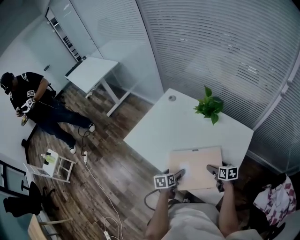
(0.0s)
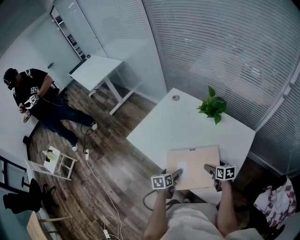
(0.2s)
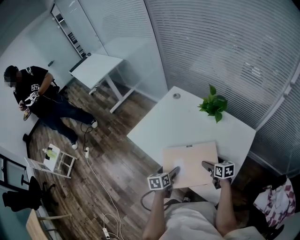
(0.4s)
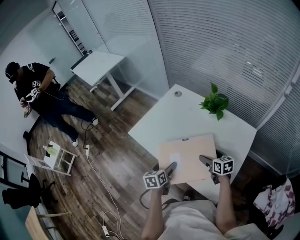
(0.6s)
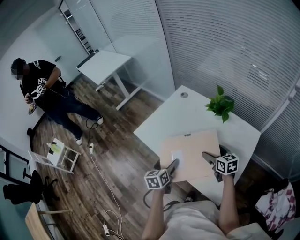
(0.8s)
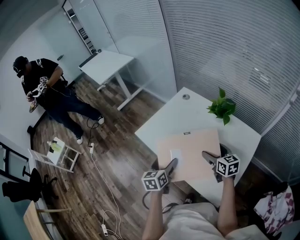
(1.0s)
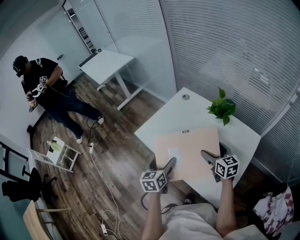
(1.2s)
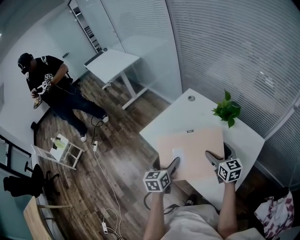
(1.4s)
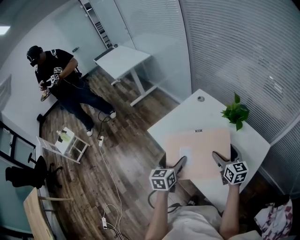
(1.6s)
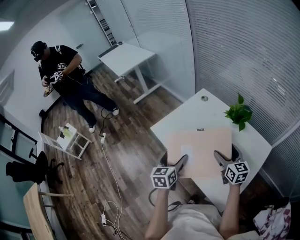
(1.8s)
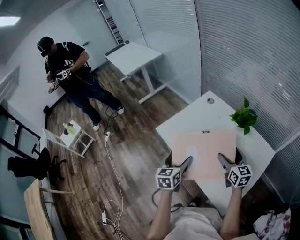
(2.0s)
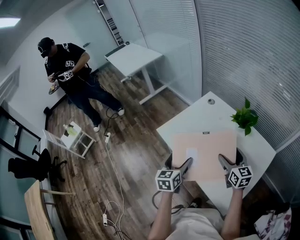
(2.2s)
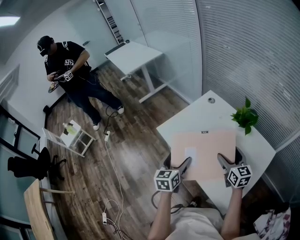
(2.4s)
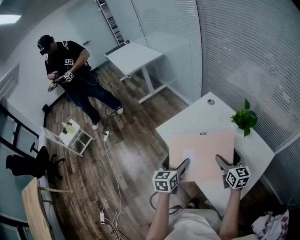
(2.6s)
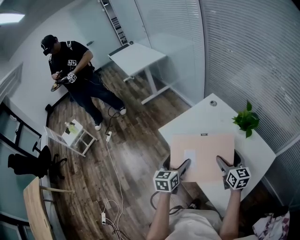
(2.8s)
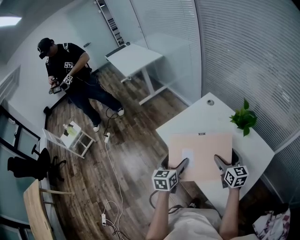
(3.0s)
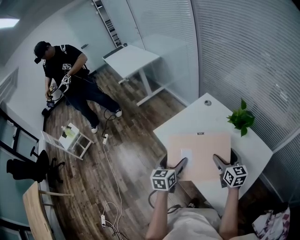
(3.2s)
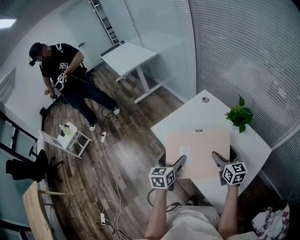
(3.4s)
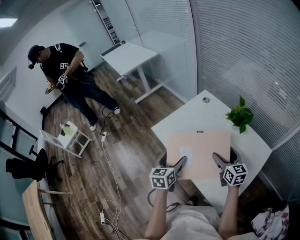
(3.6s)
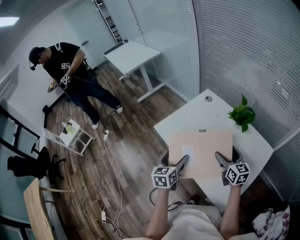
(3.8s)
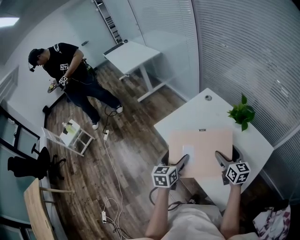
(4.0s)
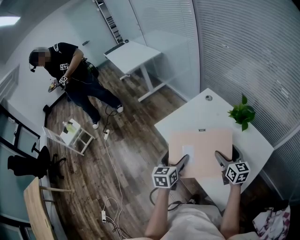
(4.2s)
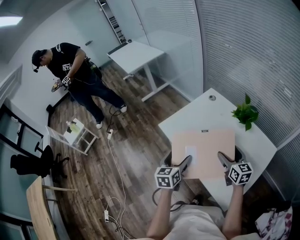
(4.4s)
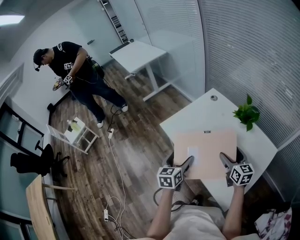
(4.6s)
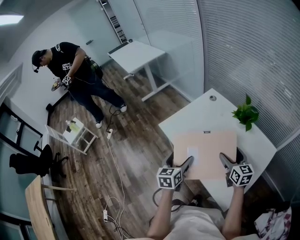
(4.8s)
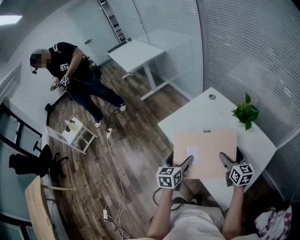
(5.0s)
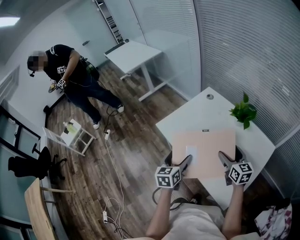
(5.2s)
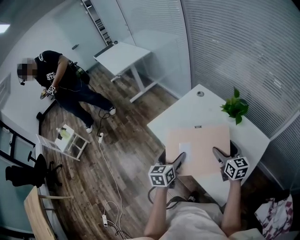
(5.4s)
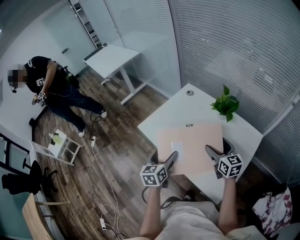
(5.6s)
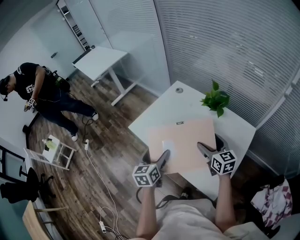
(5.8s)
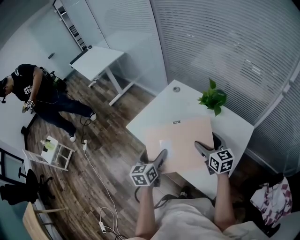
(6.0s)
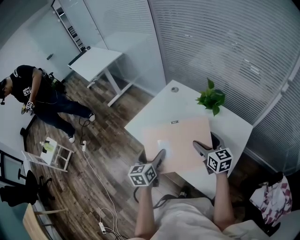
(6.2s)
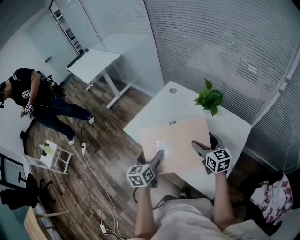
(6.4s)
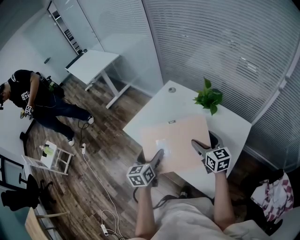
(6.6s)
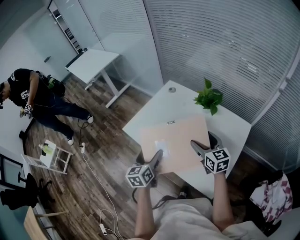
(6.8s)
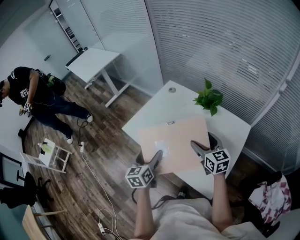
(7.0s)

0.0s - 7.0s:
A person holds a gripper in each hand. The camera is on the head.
0.0s - 1.4s: Both grippers travel together upward and to the left, about 20 cm. The left gripper changes its angle by approximately 30 degrees; the right gripper rotates approximately 40 degrees.
1.4s - 5.6s: There are only small adjustments of the grippers.
5.6s - 7.0s: The two grippers keep their place.

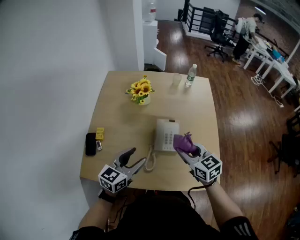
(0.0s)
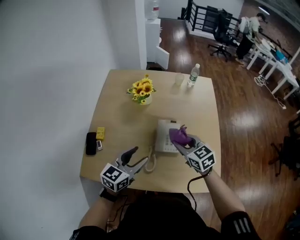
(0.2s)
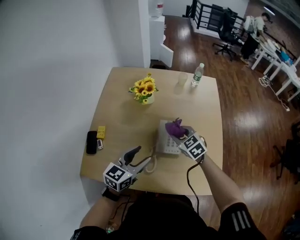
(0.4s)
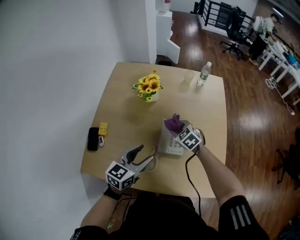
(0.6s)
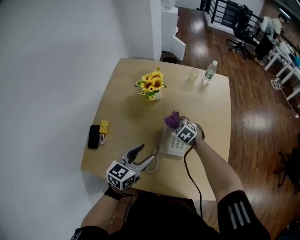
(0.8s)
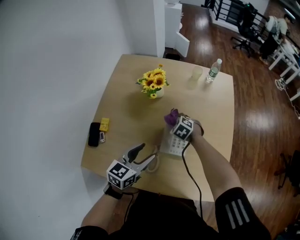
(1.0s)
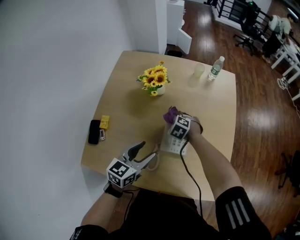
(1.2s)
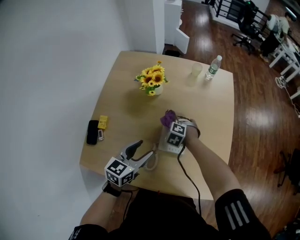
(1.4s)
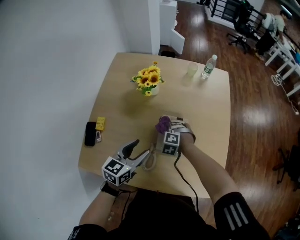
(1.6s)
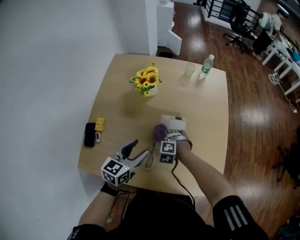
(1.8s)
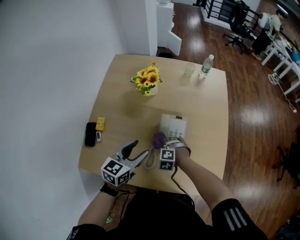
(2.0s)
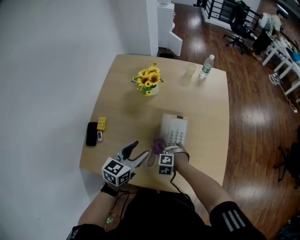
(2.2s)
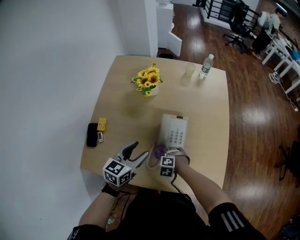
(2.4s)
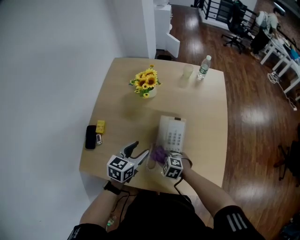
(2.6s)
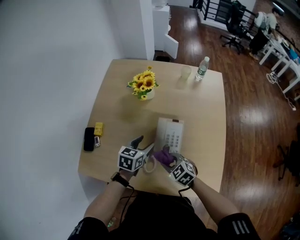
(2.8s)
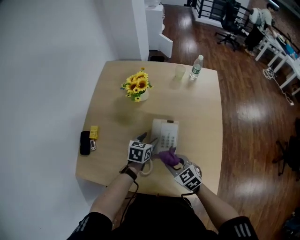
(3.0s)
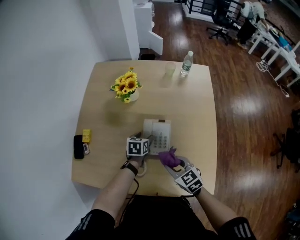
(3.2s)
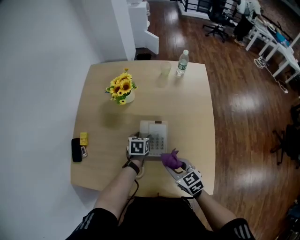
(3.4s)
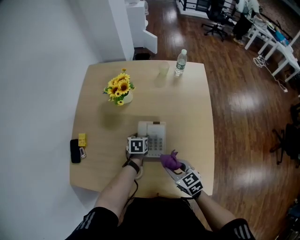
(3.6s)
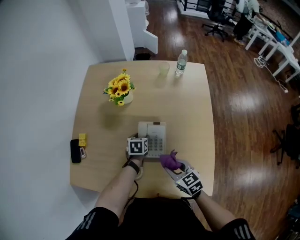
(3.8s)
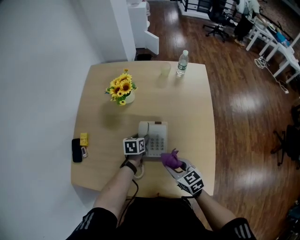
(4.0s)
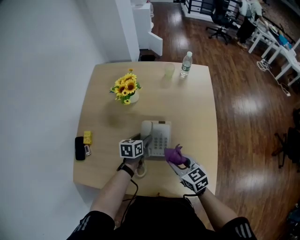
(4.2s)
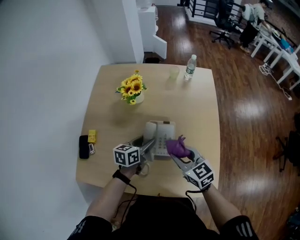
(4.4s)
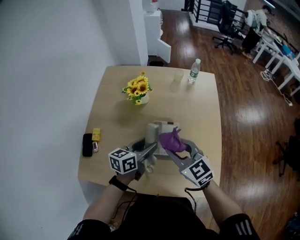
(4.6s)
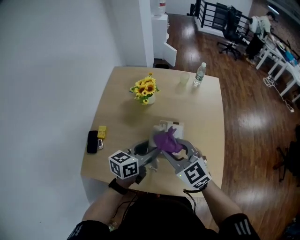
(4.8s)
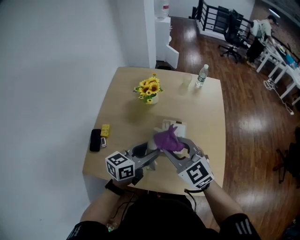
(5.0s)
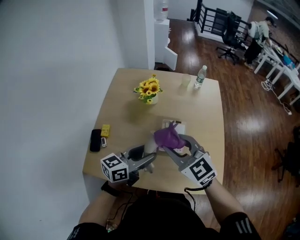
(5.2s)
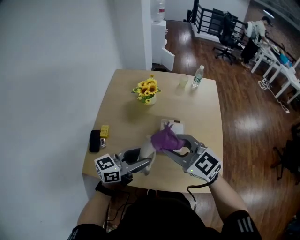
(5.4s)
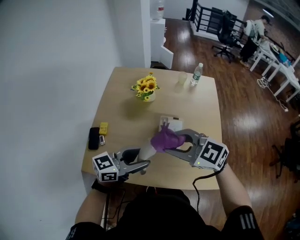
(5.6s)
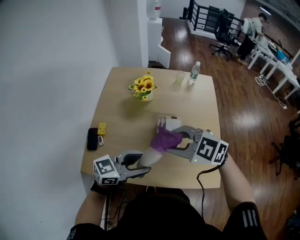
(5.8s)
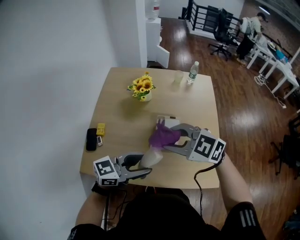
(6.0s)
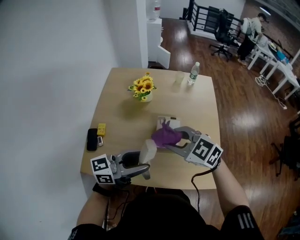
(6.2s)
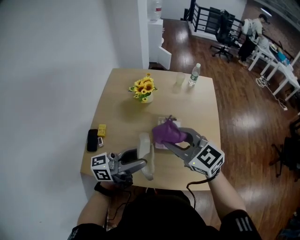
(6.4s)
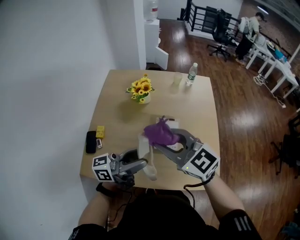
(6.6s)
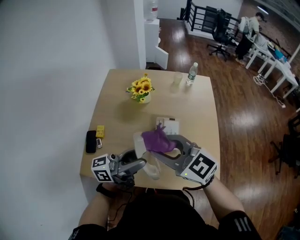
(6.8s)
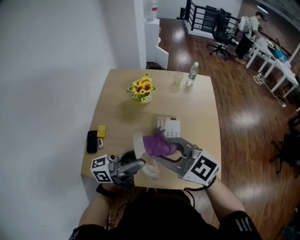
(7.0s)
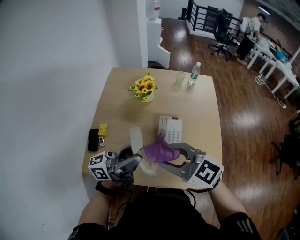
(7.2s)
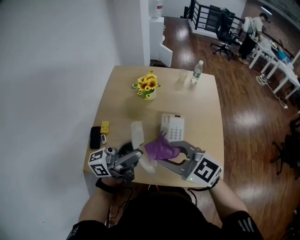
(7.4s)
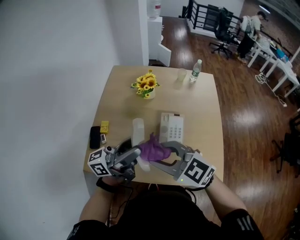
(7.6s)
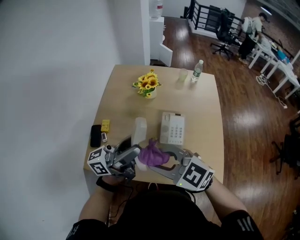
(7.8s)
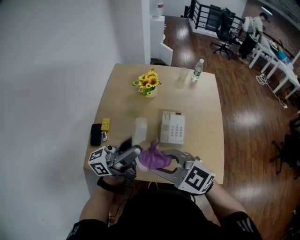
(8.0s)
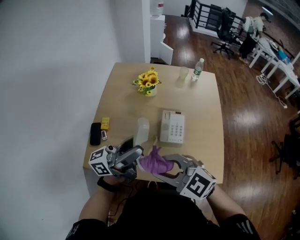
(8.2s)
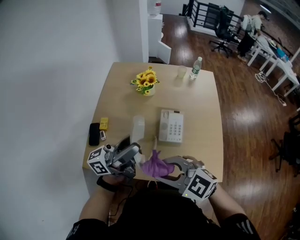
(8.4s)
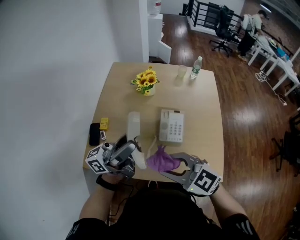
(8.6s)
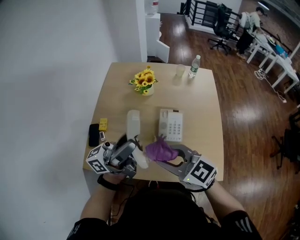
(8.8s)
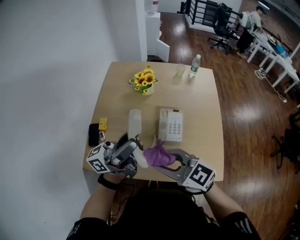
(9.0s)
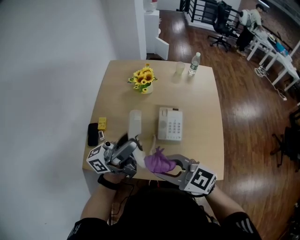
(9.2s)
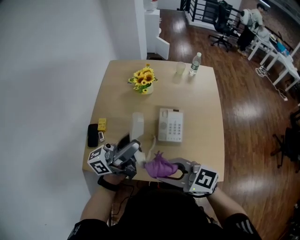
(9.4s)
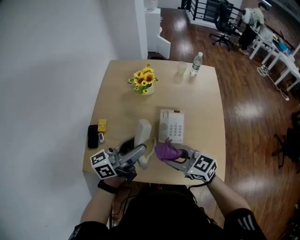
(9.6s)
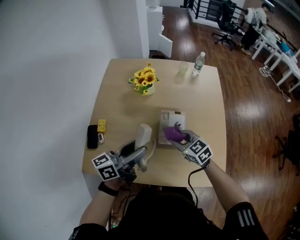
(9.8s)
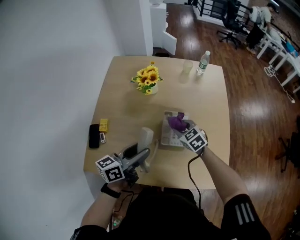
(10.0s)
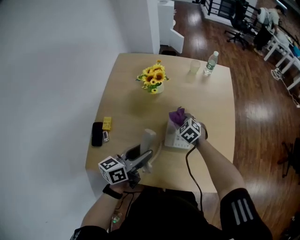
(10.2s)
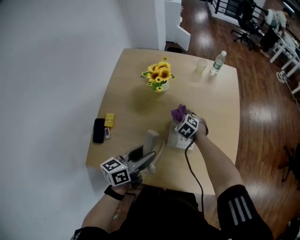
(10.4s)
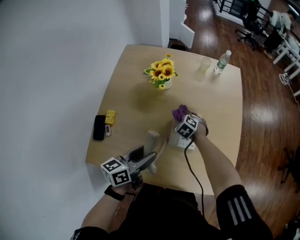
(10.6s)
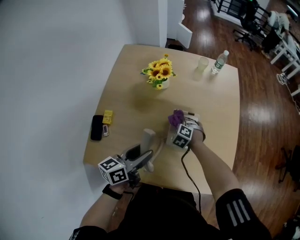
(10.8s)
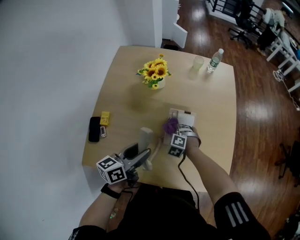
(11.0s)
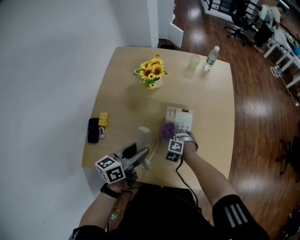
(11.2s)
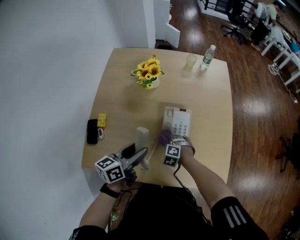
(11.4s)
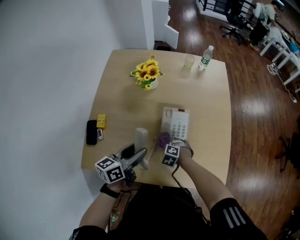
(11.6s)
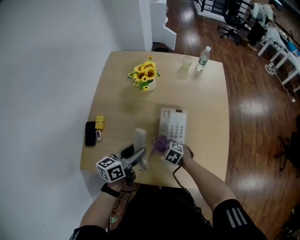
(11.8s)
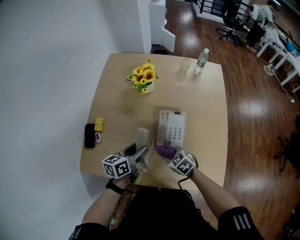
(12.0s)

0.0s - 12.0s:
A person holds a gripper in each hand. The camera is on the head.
0.0s - 1.6s: The right gripper goes some 25 cm downward and forward, and twists some 60 degrees counterclockwise, seen from behind. Meanwhile the left gripper moves forward, approximately 10 cm.
1.6s - 3.0s: The right gripper heads backward and upward, covering about 15 cm, and rotates around the line of its fingers by roughly 40 degrees, clockwise from behind. Meanwhile the left gripper moves downward, forward and to the right, approximately 15 cm, and changes its angle by roughly 20 degrees.
3.0s - 4.4s: The left gripper goes downward and returns, approximately 10 cm each way, and changes its angle by roughly 20 degrees. The right gripper shifts roughly 10 cm upward.
4.4s - 6.0s: The left gripper shifts by about 30 cm, and rotates roughly 40 degrees. The right gripper moves upward, approximately 15 cm, and changes its angle by some 40 degrees.
6.0s - 7.6s: The left gripper is displaced upward by about 10 cm, and angles its fingers upward, by some 40 degrees. Meanwhile the right gripper changes place by about 10 cm.
9.0s - 10.4s: The right gripper moves roughly 40 cm, and points its fingers some 40 degrees further downward. Meanwhile the left gripper moves downward, roughly 20 cm, and points its fingers roughly 50 degrees further downward.
10.4s - 12.0s: The right gripper goes downward and returns, about 5 cm each way, and changes its angle by about 30 degrees; the left gripper heads downward, covering roughly 5 cm.

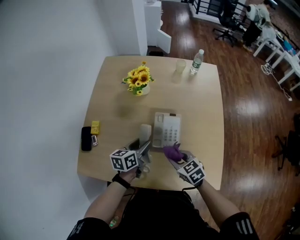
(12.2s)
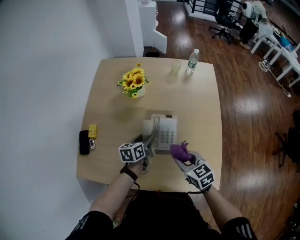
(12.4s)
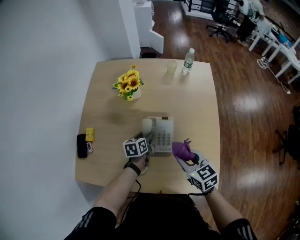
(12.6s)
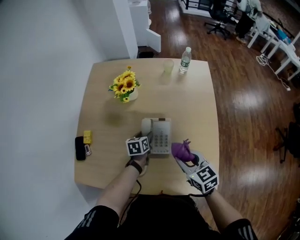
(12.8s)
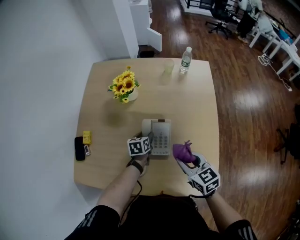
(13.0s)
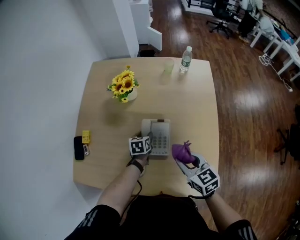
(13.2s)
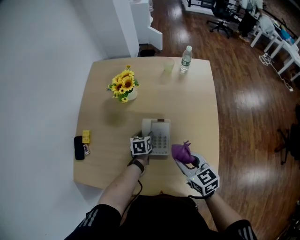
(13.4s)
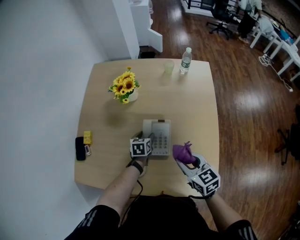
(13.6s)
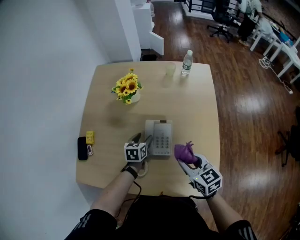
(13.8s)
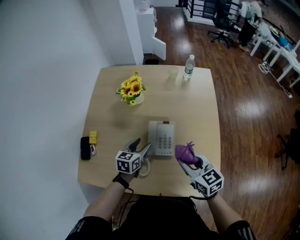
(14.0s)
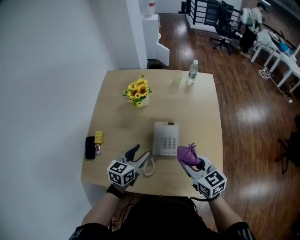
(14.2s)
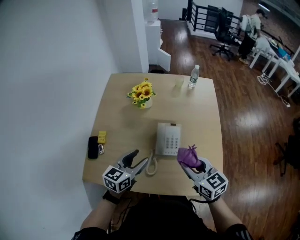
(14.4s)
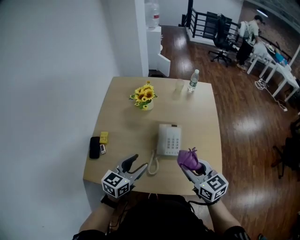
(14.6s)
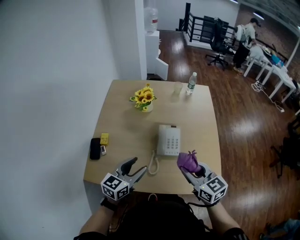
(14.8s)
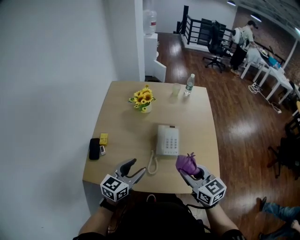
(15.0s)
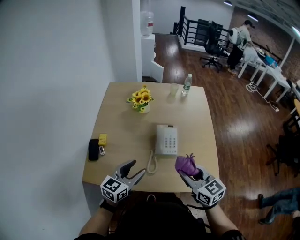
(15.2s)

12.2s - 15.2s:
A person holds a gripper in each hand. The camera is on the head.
12.2s - 13.8s: The right gripper shifts some 15 cm to the right and upward, and rotates some 20 degrees. Meanwhile the left gripper travels forward, downward and to the right by some 10 cm, and rotates approximately 20 degrees.
13.8s - 15.2s: The right gripper is displaced backward, upward and to the left by some 20 cm. The left gripper heads backward, upward and to the left, covering about 30 cm, and rotates some 30 degrees.

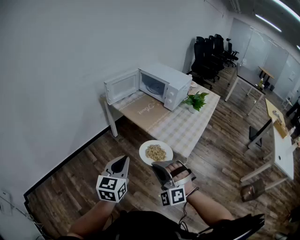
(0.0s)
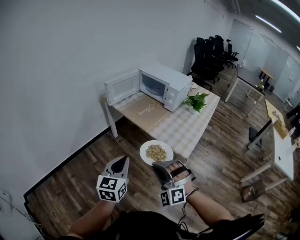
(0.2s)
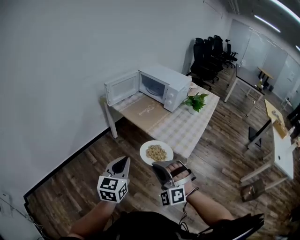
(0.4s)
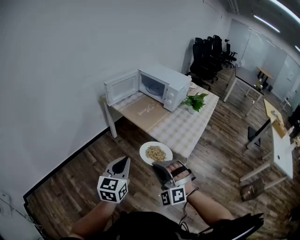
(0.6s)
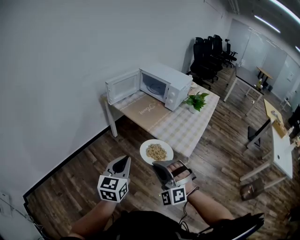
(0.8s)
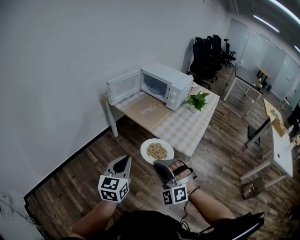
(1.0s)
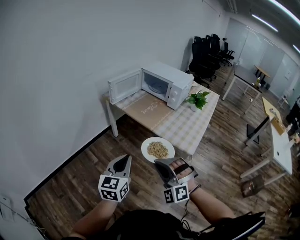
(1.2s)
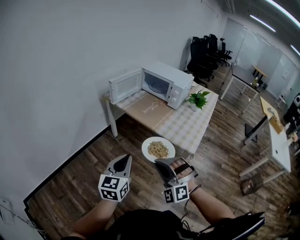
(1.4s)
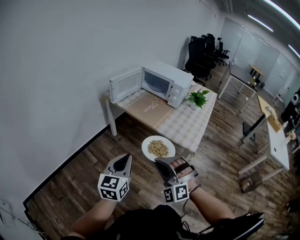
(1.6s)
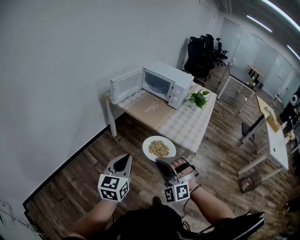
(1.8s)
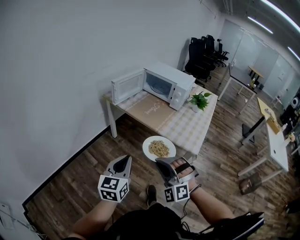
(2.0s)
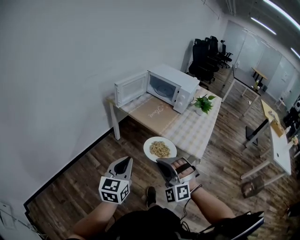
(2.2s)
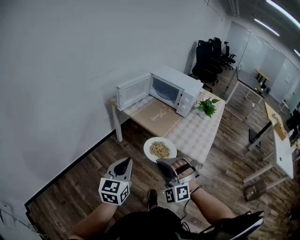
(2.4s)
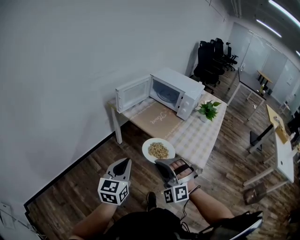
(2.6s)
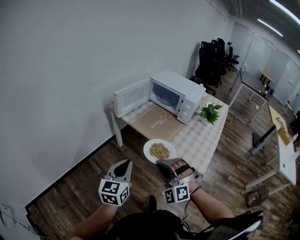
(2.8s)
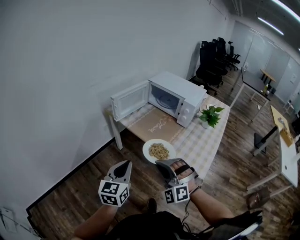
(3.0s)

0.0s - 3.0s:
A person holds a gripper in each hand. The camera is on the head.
0.0s - 1.6s: The two grippers go some 10 cm to the left.
1.6s - 3.0s: The grippers both shift forward by about 15 cm.
